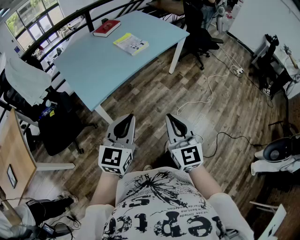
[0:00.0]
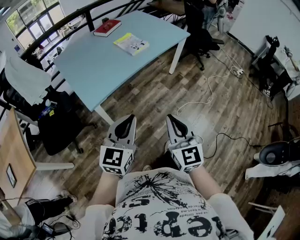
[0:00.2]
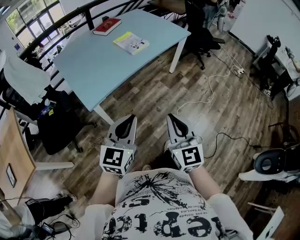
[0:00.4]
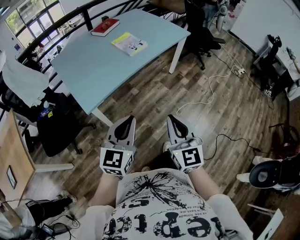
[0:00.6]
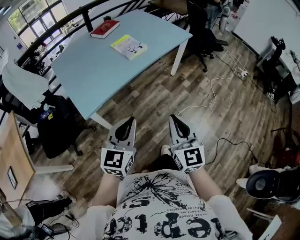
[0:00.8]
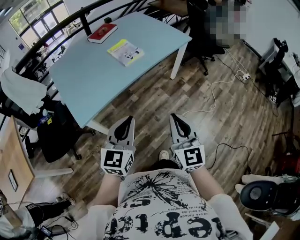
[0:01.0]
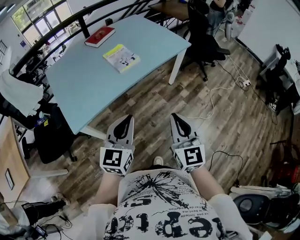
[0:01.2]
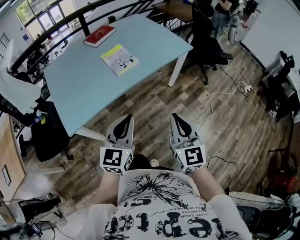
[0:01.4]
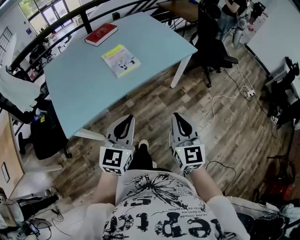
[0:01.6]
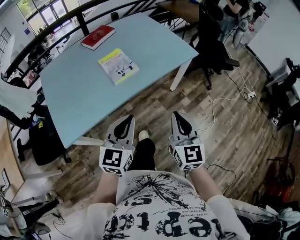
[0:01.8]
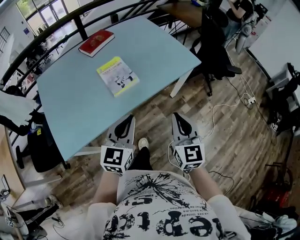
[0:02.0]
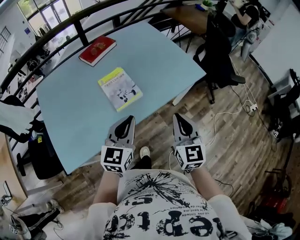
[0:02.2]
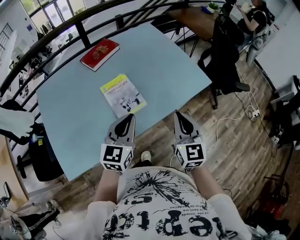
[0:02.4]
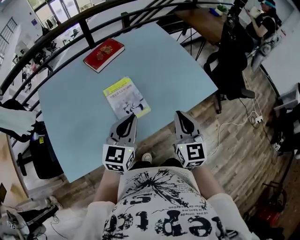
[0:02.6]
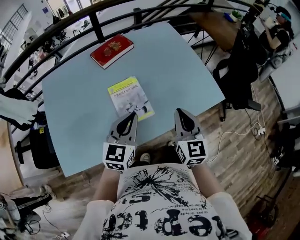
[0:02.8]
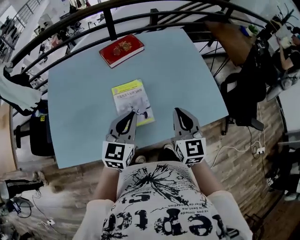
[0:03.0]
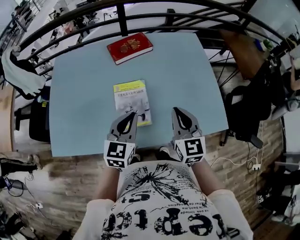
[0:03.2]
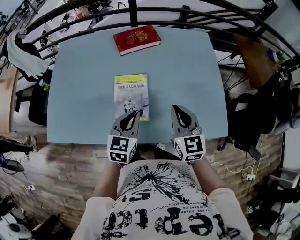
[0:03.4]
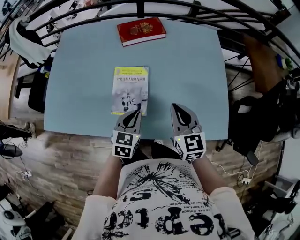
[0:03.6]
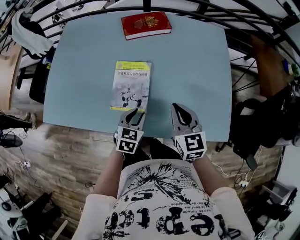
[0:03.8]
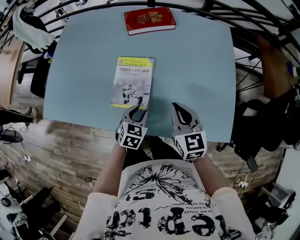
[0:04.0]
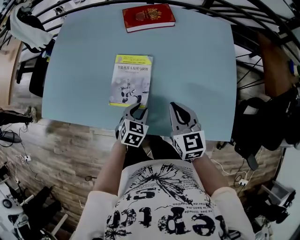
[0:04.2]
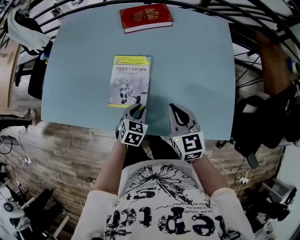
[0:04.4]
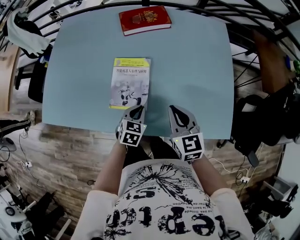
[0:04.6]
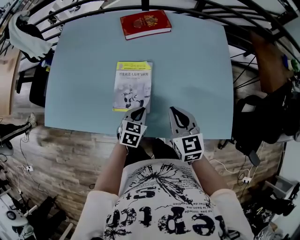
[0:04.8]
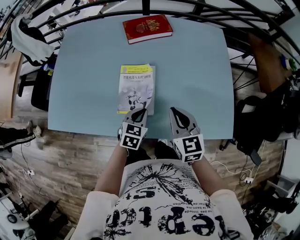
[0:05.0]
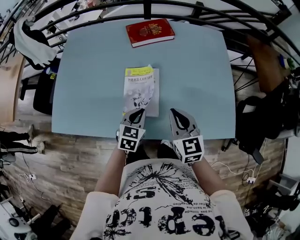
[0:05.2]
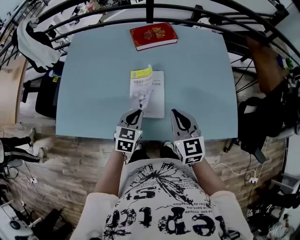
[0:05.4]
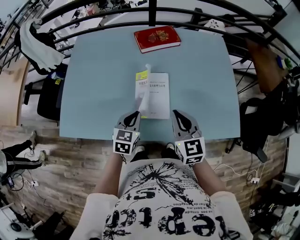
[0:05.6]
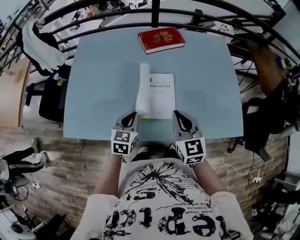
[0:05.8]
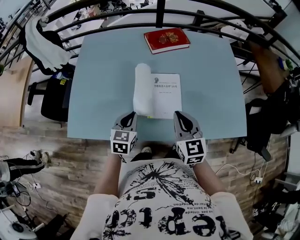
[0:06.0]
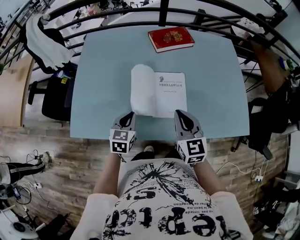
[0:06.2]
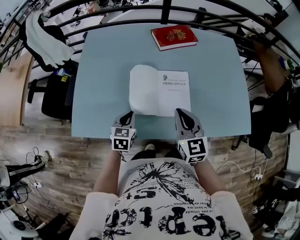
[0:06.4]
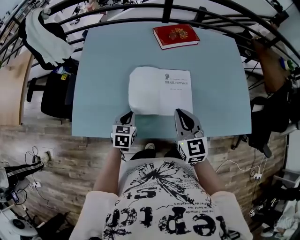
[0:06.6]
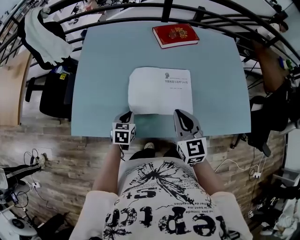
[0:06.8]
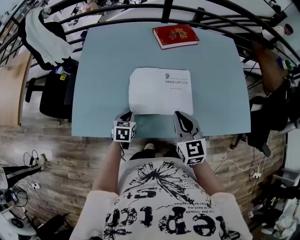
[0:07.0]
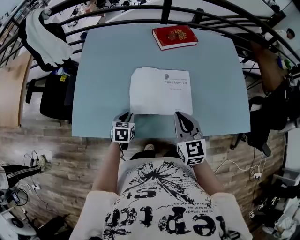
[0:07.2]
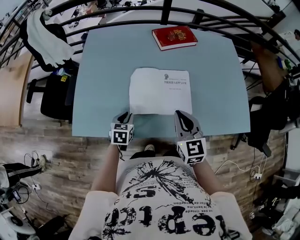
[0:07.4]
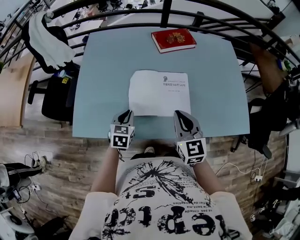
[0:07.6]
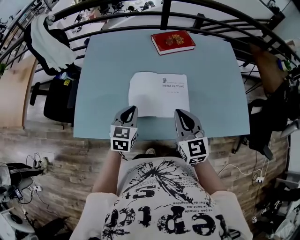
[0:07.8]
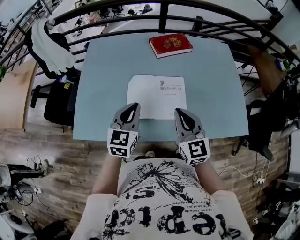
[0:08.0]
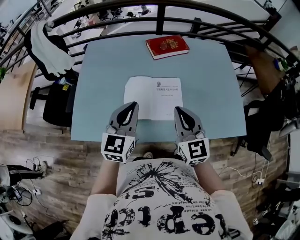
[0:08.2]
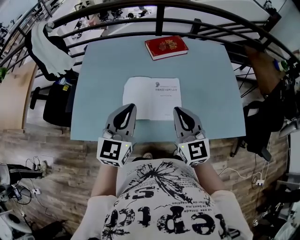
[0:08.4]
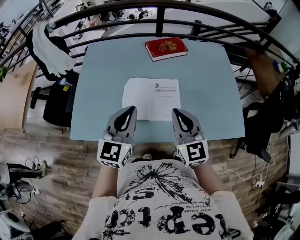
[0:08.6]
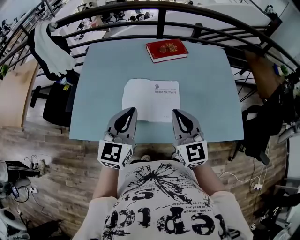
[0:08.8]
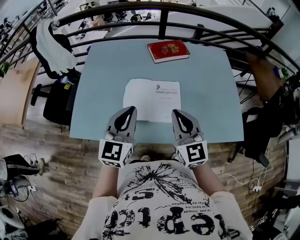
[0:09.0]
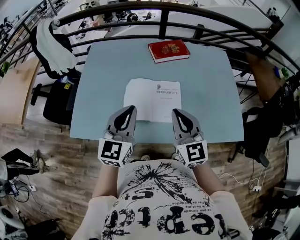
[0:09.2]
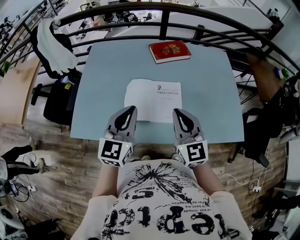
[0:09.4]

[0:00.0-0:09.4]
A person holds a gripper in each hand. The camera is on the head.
0:00.0 to 0:01.6: Both grippers move forward and to the right, about 35 cm.
0:01.6 to 0:03.2: Both grippers are carried about 50 cm. The right gripper turns by some 30 degrees. The left gripper swivels roughly 30 degrees.
0:03.2 to 0:04.8: The right gripper moves downward, some 10 cm, and turns by approximately 20 degrees, while the left gripper shifts about 20 cm downward, turns by approximately 30 degrees, and opens and closes again.
0:04.8 to 0:06.2: Both grippers travel together to the left, about 25 cm.
0:06.2 to 0:07.8: The left gripper heads upward, covering about 5 cm.
0:07.8 to 0:09.4: The left gripper travels upward by approximately 15 cm, and rotates some 20 degrees. Meanwhile the right gripper heads upward, covering roughly 5 cm.

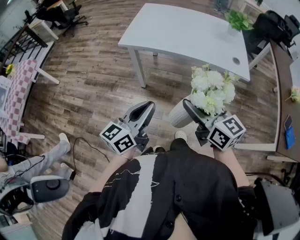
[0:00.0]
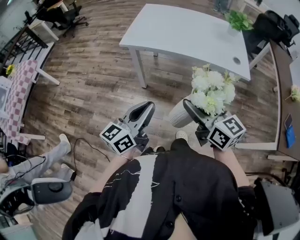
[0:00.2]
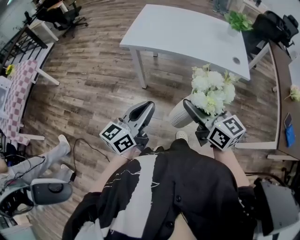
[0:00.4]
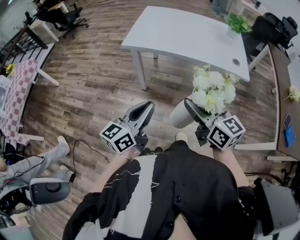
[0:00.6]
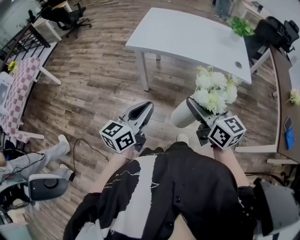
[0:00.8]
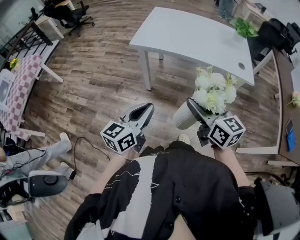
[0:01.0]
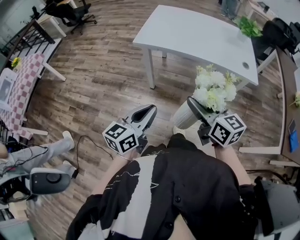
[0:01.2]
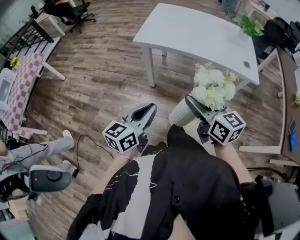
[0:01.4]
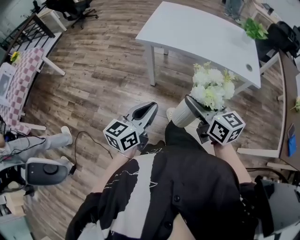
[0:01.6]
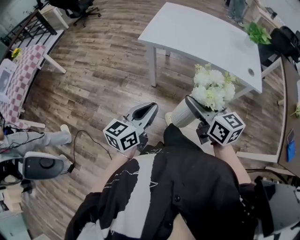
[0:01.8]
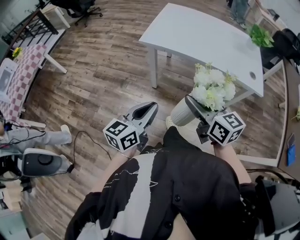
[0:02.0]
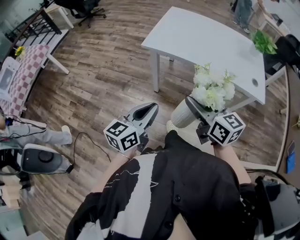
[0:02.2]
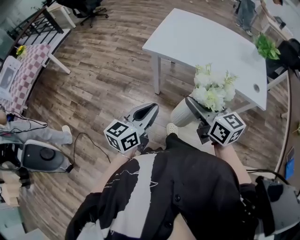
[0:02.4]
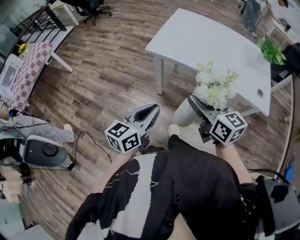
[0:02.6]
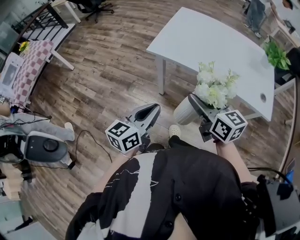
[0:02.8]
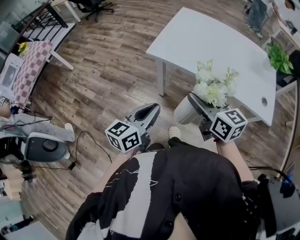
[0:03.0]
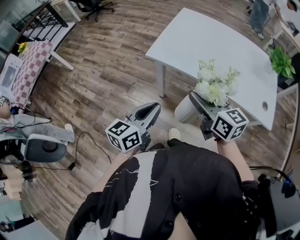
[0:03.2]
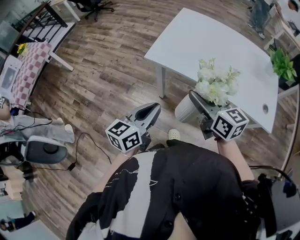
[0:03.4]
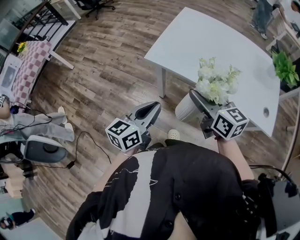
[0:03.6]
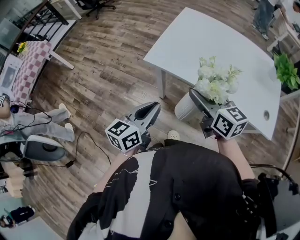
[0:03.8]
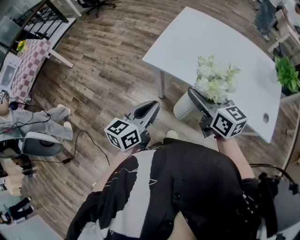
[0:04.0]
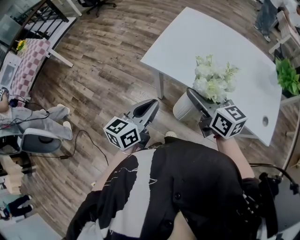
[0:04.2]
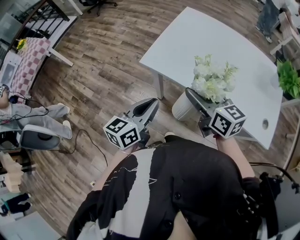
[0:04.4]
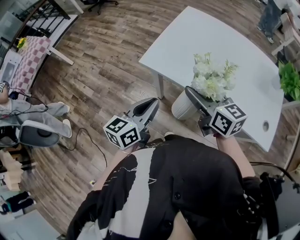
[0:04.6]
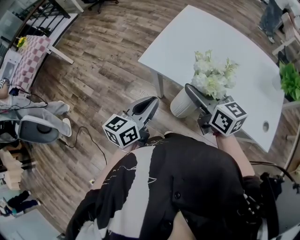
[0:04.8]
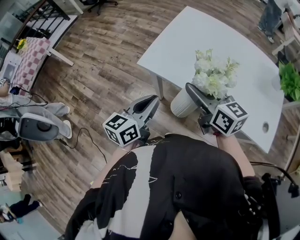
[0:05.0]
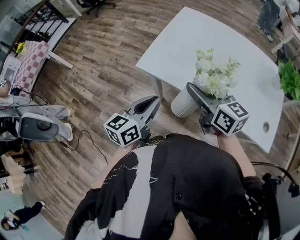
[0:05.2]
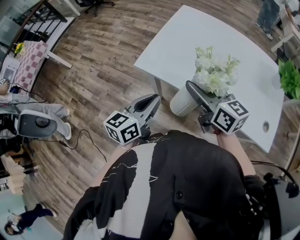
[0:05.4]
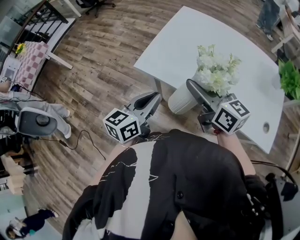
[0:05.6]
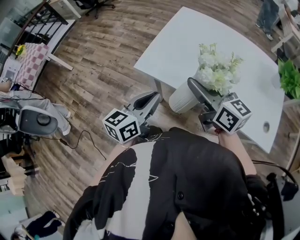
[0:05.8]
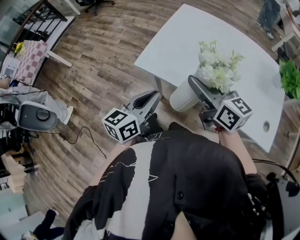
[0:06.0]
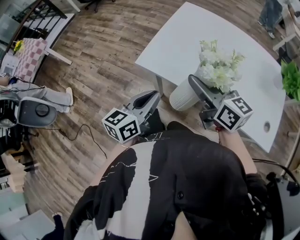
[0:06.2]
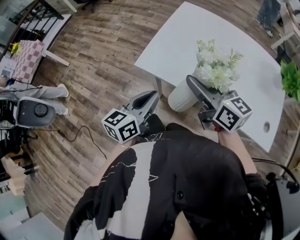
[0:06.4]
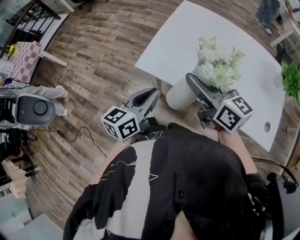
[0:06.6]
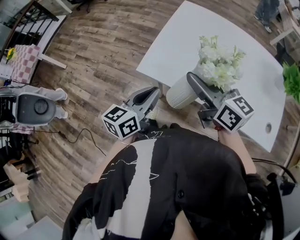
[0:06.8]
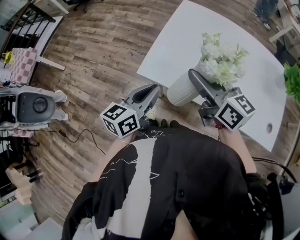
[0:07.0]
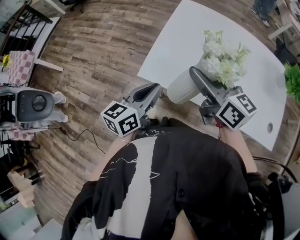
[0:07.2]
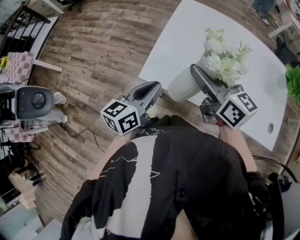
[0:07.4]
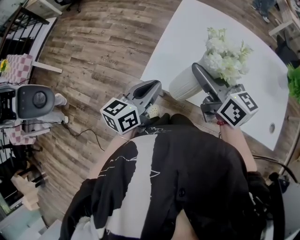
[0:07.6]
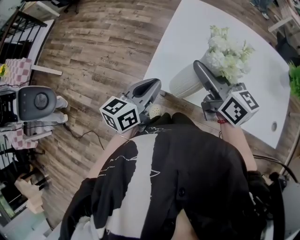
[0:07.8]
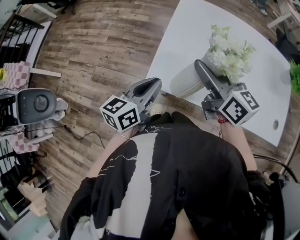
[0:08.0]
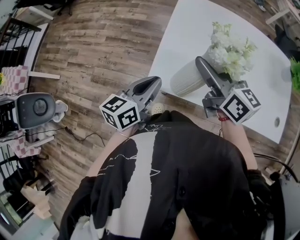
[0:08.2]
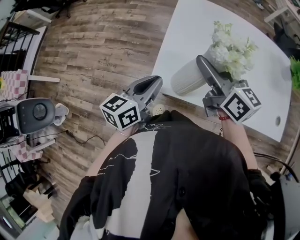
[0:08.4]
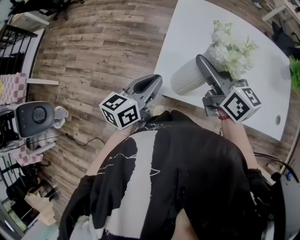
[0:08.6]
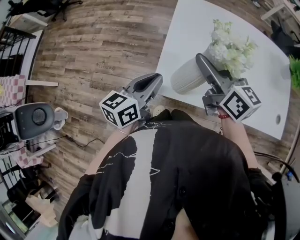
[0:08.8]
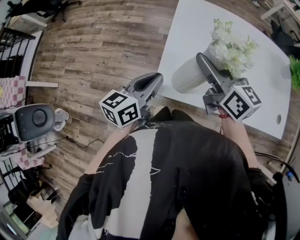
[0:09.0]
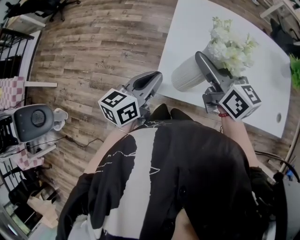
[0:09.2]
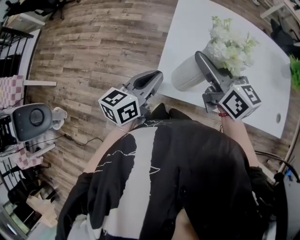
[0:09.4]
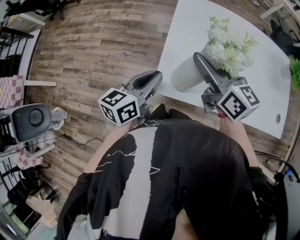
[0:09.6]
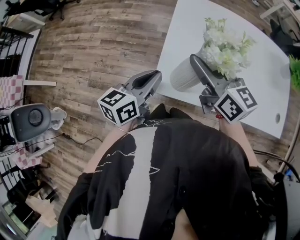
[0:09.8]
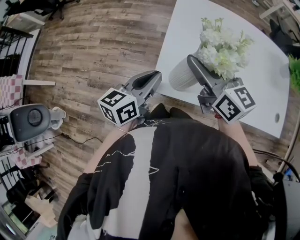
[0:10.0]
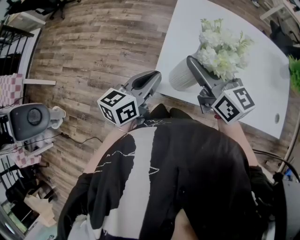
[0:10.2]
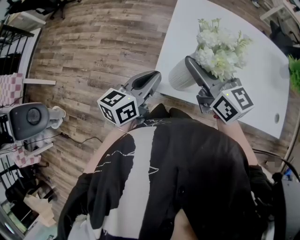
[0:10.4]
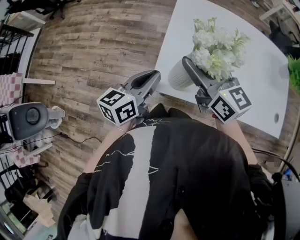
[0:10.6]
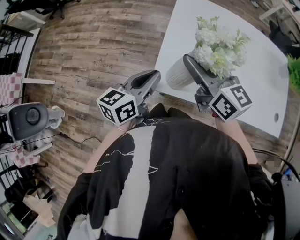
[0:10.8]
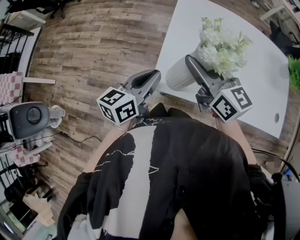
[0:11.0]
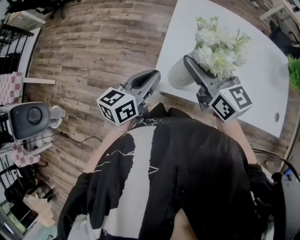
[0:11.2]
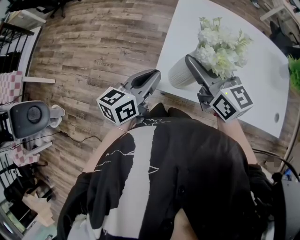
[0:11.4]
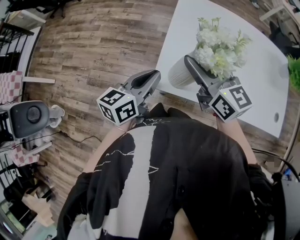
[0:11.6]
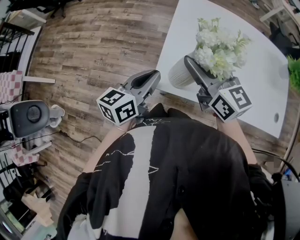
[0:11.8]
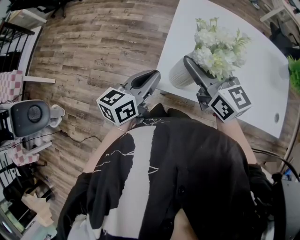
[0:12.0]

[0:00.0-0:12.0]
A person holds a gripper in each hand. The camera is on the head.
0:00.0 to 0:01.6: Both grippers travel together to the left, approximately 10 cm.
0:01.6 to 0:03.0: Both grippers travel together forward, some 20 cm.
0:03.0 to 0:04.4: Both grippers move forward, roughly 15 cm.
0:04.4 to 0:06.0: Both grippers travel together forward, roughly 5 cm.
0:06.0 to 0:07.6: Both grippers move forward and to the left, approximately 15 cm.
0:07.6 to 0:09.0: The left gripper heads forward and to the left, covering approximately 10 cm. Meanwhile the right gripper heads forward, covering about 5 cm.
0:09.0 to 0:10.4: The grippers make only small movements.
0:10.4 to 0:12.0: Neither gripper changes place.

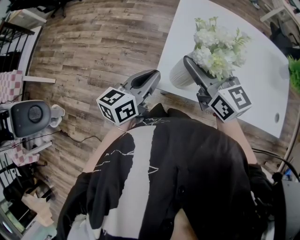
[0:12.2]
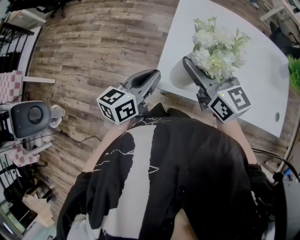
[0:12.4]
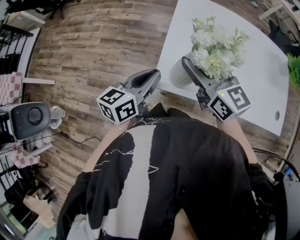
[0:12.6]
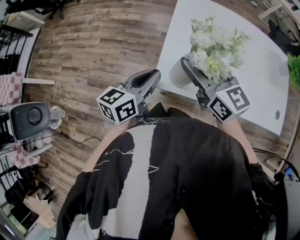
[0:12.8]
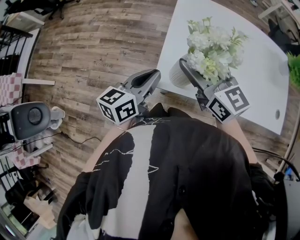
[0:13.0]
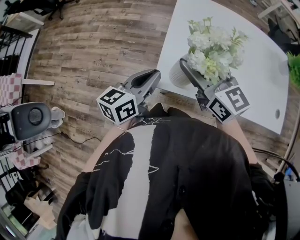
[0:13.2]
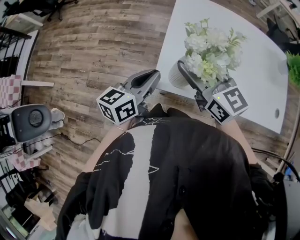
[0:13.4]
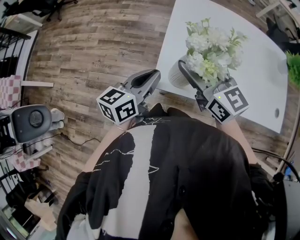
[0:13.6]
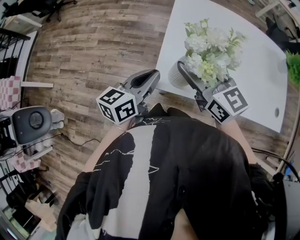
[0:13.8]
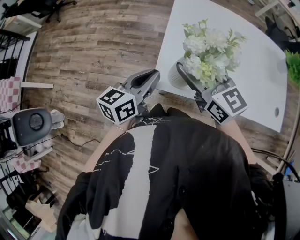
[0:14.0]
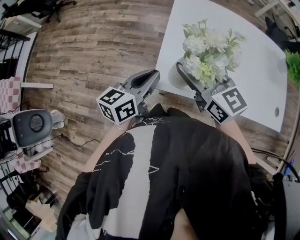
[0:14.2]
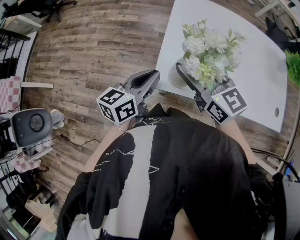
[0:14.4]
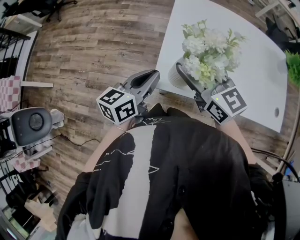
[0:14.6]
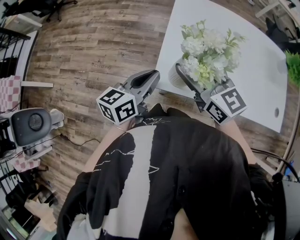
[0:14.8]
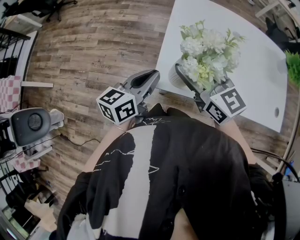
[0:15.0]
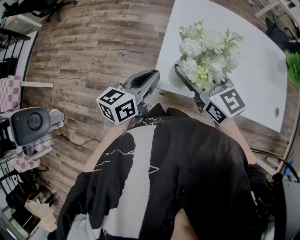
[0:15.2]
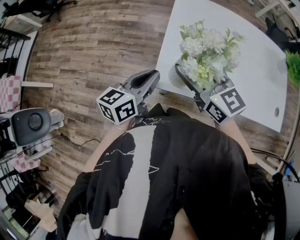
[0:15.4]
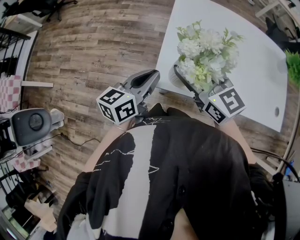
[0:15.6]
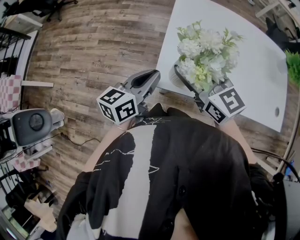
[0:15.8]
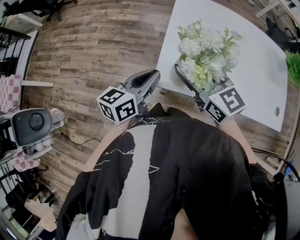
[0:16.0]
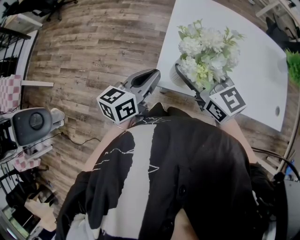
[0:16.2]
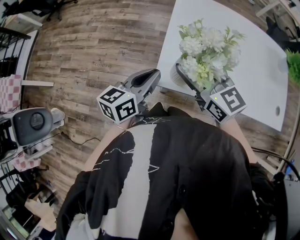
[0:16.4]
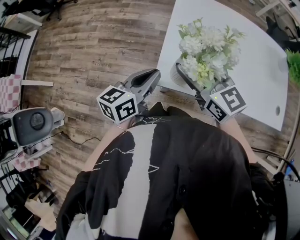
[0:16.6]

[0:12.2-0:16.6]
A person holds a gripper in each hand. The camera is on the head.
0:12.2 to 0:13.6: The grippers make only small movements.
0:13.6 to 0:15.2: The two grippers keep their place.
0:15.2 to 0:16.6: Both grippers stay about where they are.
